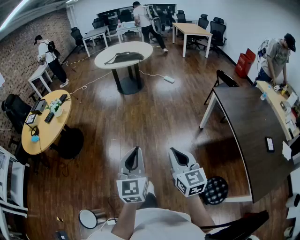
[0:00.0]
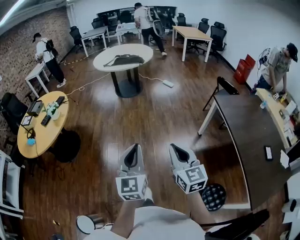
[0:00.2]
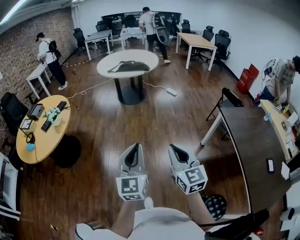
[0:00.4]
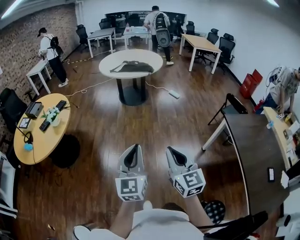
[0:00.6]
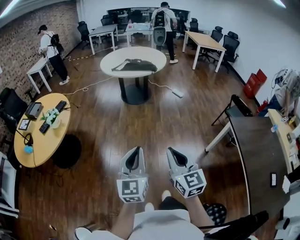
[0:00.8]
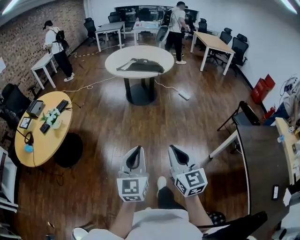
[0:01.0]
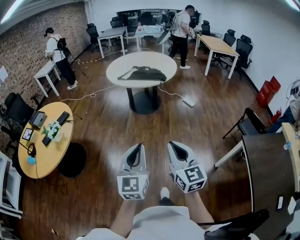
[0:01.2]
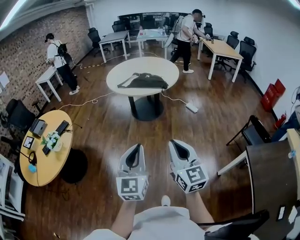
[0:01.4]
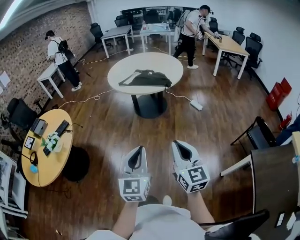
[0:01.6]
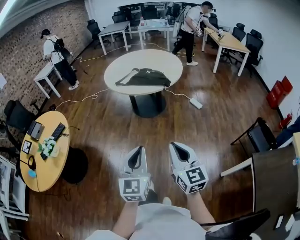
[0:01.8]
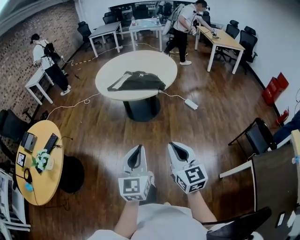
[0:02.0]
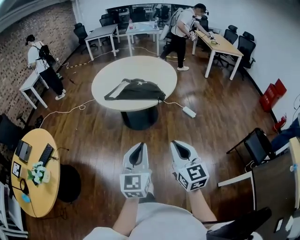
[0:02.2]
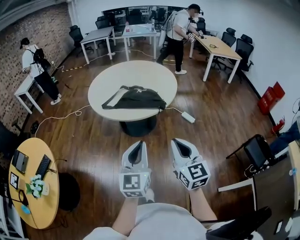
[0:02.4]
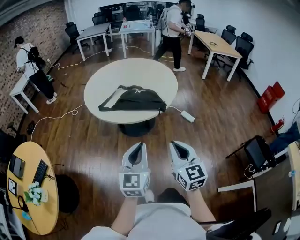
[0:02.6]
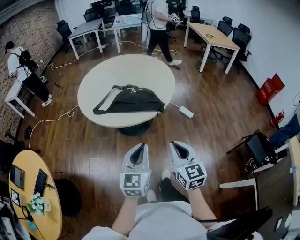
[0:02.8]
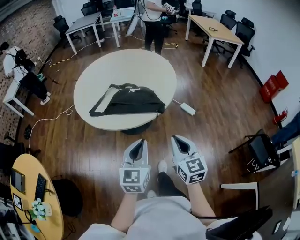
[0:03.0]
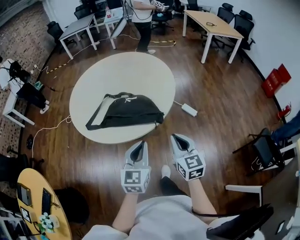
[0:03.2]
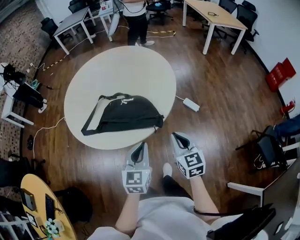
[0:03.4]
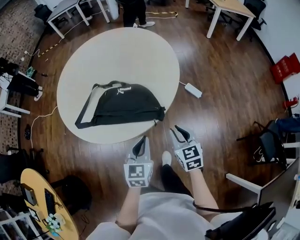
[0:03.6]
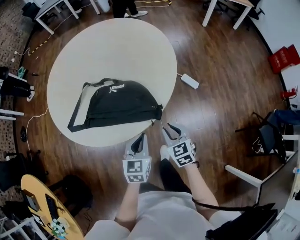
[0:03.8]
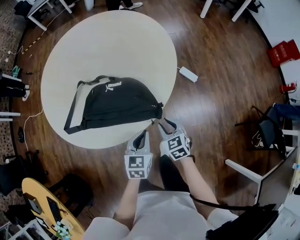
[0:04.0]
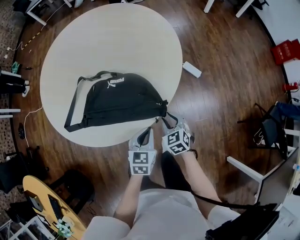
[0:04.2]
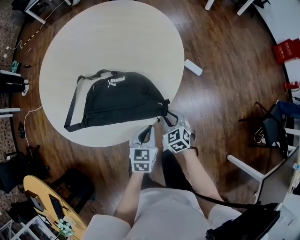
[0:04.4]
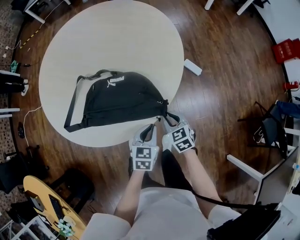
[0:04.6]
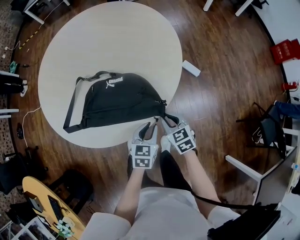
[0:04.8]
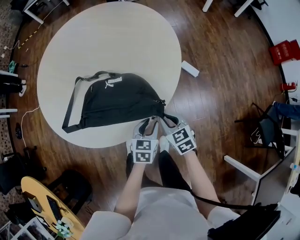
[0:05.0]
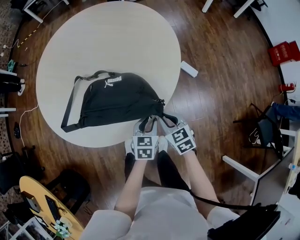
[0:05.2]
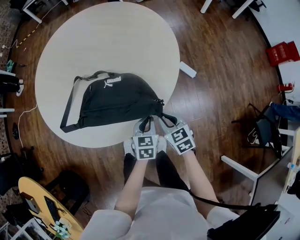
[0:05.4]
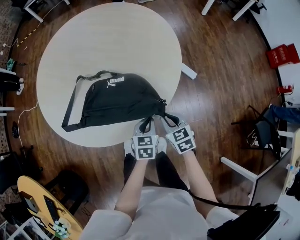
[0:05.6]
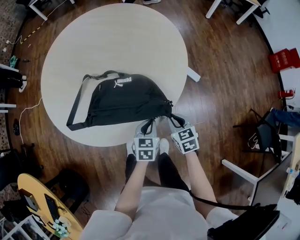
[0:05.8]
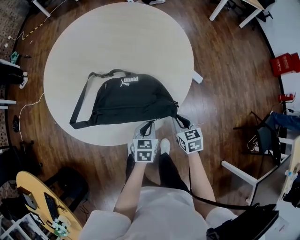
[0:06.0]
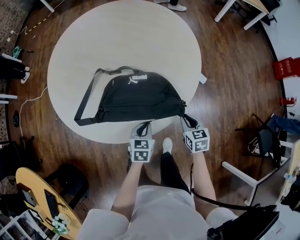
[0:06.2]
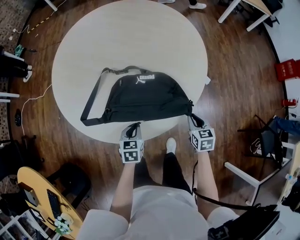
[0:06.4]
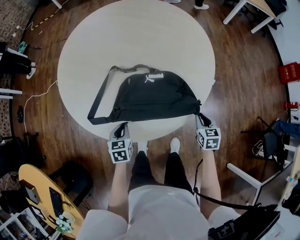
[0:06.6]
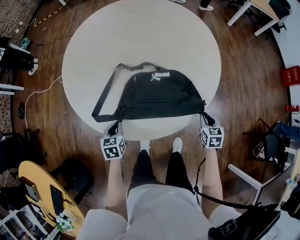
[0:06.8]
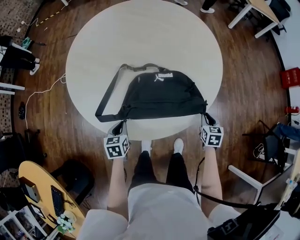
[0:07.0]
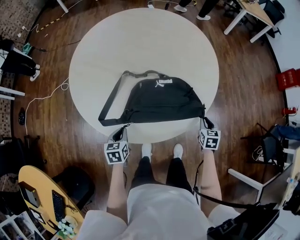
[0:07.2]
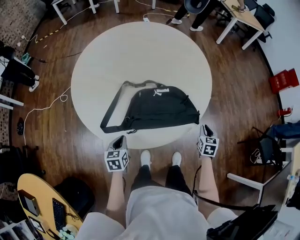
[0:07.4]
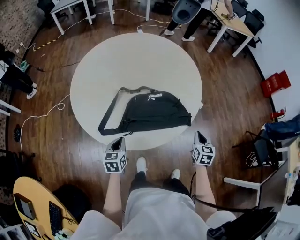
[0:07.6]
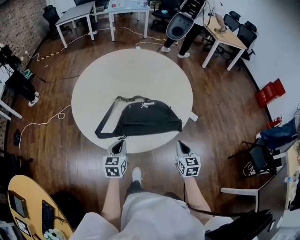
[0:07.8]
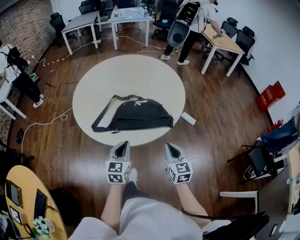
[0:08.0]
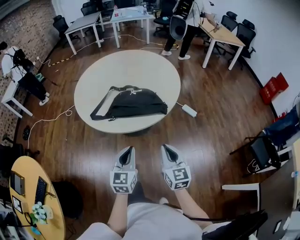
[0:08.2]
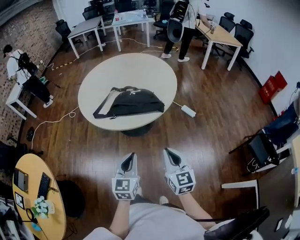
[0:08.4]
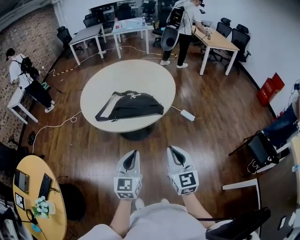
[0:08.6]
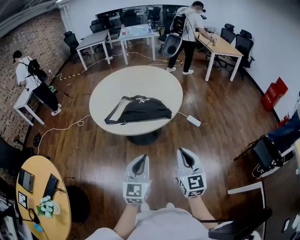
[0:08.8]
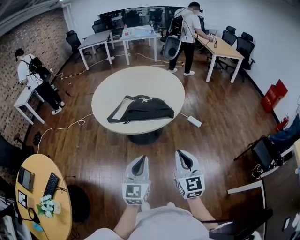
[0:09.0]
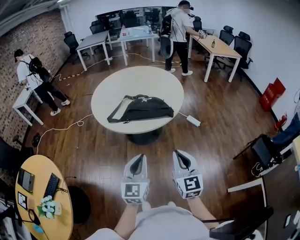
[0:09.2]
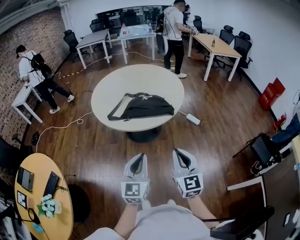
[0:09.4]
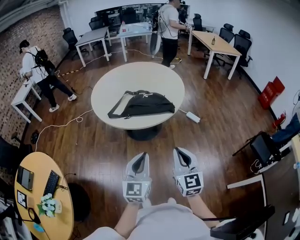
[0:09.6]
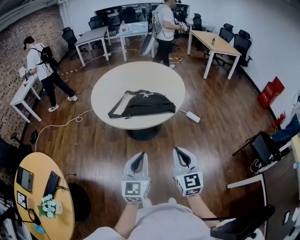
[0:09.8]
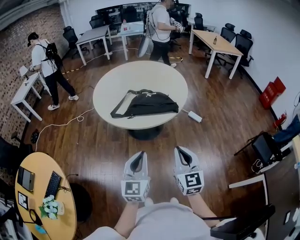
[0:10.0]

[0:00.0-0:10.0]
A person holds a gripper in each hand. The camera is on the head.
0:00.0 to 0:01.4: The pair of grippers is taken forward, approximately 50 cm.
0:01.4 to 0:02.8: Both grippers are carried forward, about 50 cm.
0:02.8 to 0:04.2: Both grippers move forward and downward, about 50 cm. The right gripper angles its fingers downward, by about 30 degrees, and opens, while the left gripper points its fingers about 30 degrees further downward.
0:04.2 to 0:05.8: The left gripper shifts by roughly 5 cm, and opens, then closes once more.
0:05.8 to 0:07.2: The left gripper shifts roughly 35 cm to the left. The right gripper changes its angle by approximately 20 degrees.
0:07.2 to 0:08.6: The left gripper travels backward, upward and to the right by some 50 cm, and angles its fingers upward, by roughly 40 degrees, while the right gripper shifts some 50 cm backward and upward, and tips its fingers upward by roughly 40 degrees.
0:08.6 to 0:10.0: The two grippers go some 10 cm to the left.

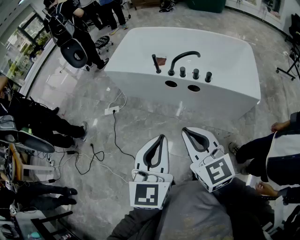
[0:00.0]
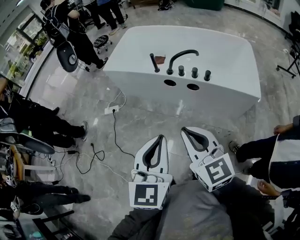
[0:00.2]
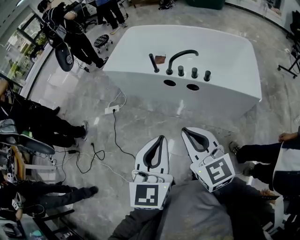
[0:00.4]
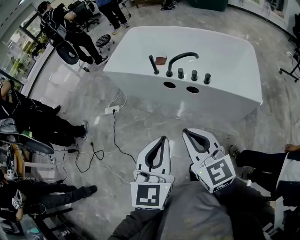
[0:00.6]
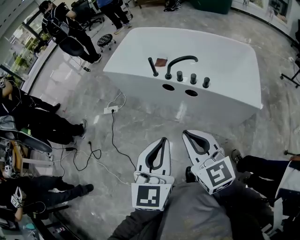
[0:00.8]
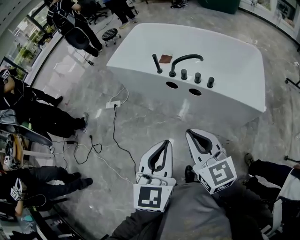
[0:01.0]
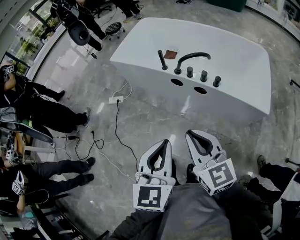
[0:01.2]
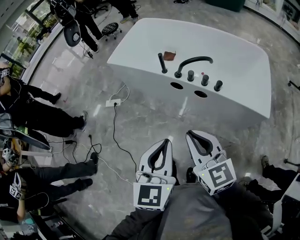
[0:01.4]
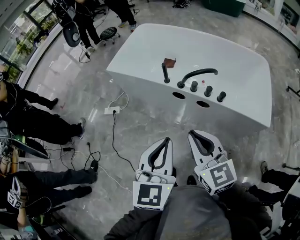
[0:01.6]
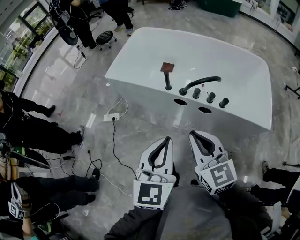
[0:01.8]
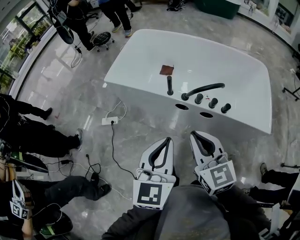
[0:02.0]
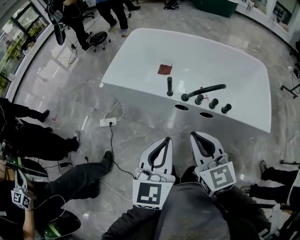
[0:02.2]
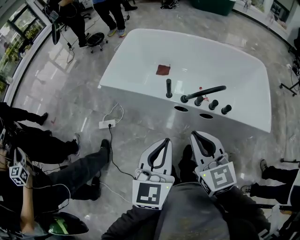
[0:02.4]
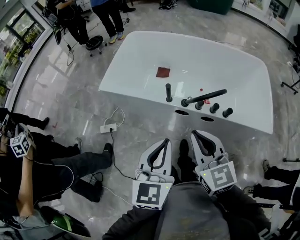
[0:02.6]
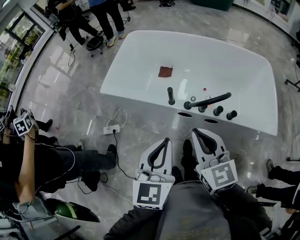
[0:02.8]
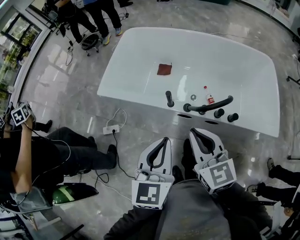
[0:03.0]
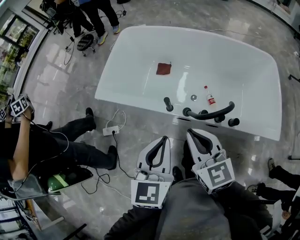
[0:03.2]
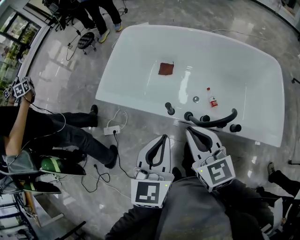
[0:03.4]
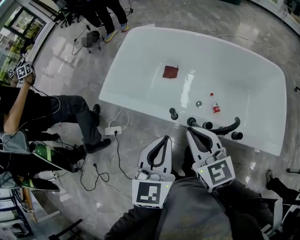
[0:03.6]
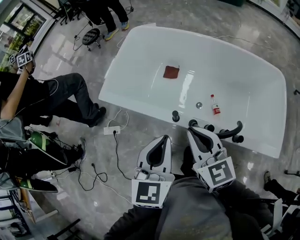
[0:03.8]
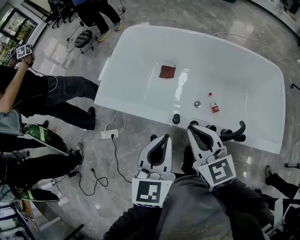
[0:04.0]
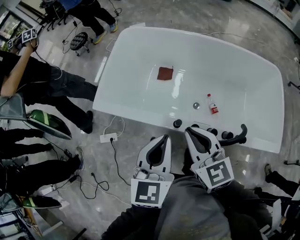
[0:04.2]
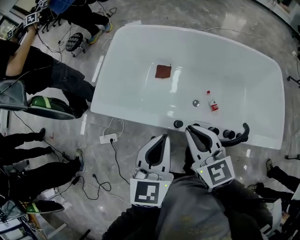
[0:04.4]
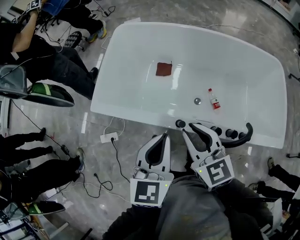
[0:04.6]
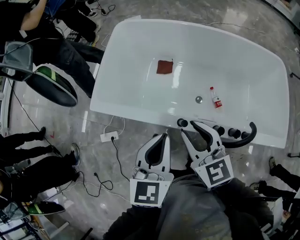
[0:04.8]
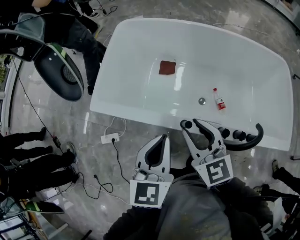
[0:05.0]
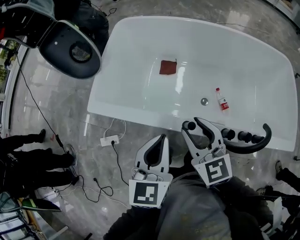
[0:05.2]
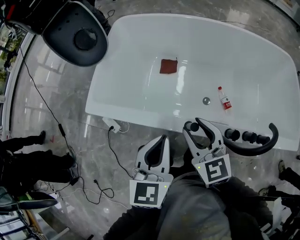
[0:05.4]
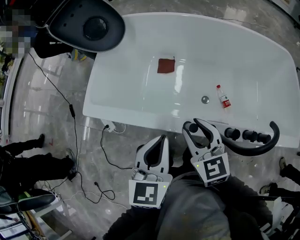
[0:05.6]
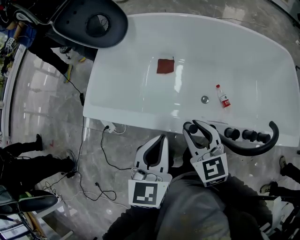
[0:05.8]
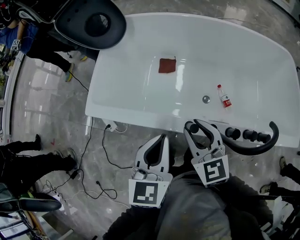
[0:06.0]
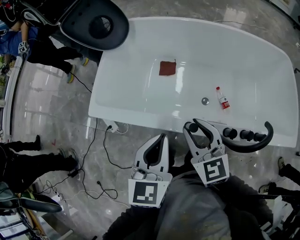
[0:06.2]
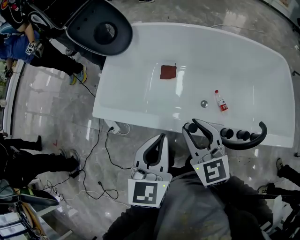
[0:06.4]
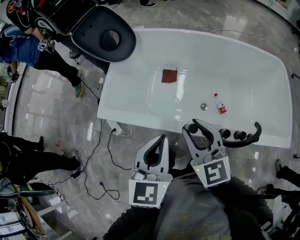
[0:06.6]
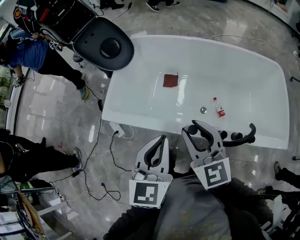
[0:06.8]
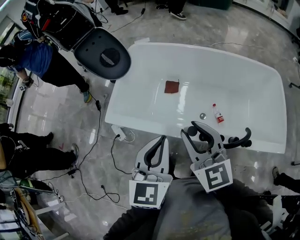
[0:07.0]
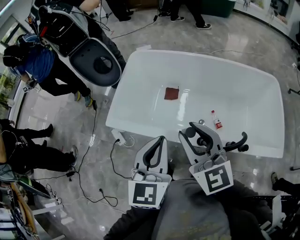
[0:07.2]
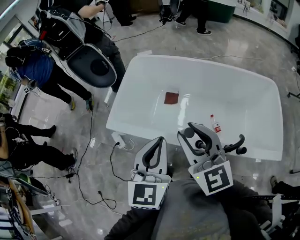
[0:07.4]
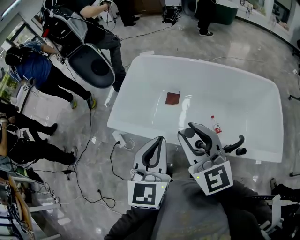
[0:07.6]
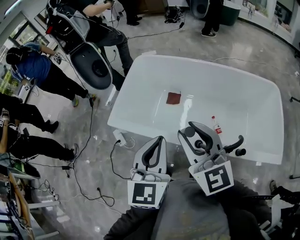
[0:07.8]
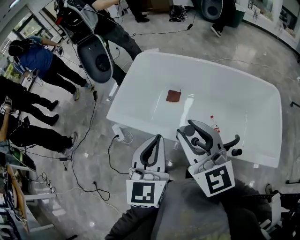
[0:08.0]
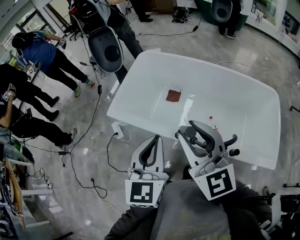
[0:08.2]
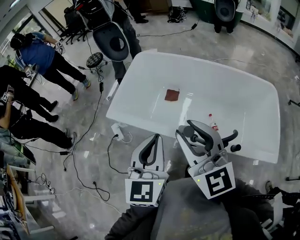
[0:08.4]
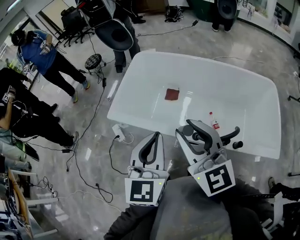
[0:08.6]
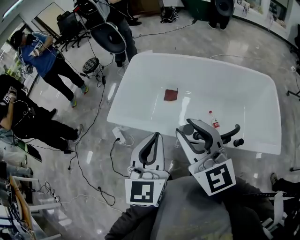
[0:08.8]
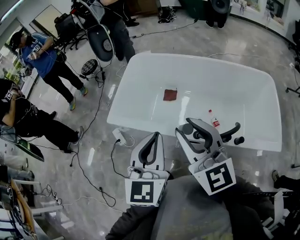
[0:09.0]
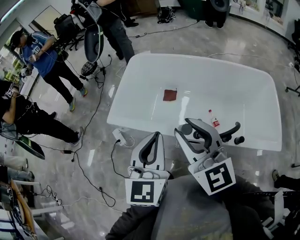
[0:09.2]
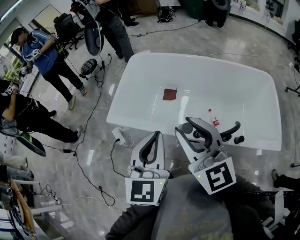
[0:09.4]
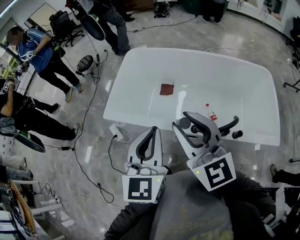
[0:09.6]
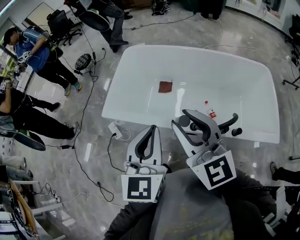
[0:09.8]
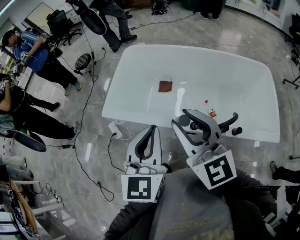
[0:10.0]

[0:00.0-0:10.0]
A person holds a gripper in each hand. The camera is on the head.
0:00.0 to 0:01.4: The grippers both shift forward by some 10 cm.
0:01.4 to 0:02.8: The two grippers go approximately 25 cm forward.
0:02.8 to 0:04.2: The grippers both shift forward by some 20 cm.
0:04.2 to 0:05.8: Both grippers move downward, approximately 20 cm. The right gripper opens.
0:05.8 to 0:07.2: Both grippers travel together upward, roughly 25 cm.
0:07.2 to 0:08.6: Both grippers travel together backward, some 10 cm.
0:08.6 to 0:10.0: Neither gripper changes place.

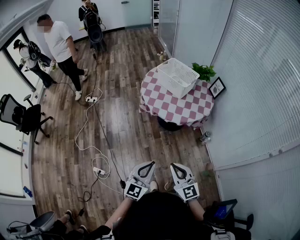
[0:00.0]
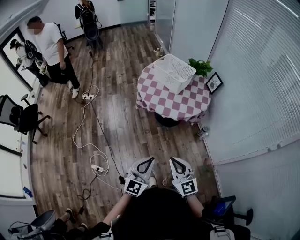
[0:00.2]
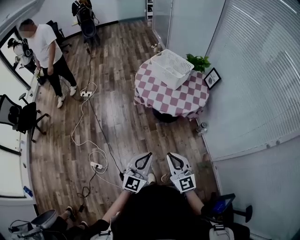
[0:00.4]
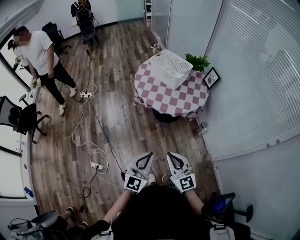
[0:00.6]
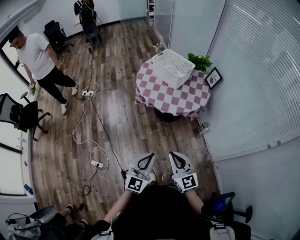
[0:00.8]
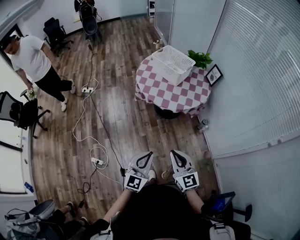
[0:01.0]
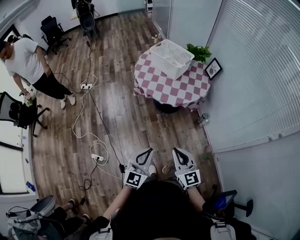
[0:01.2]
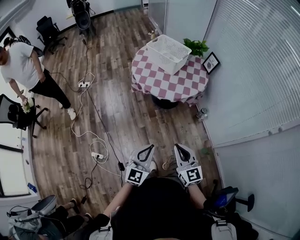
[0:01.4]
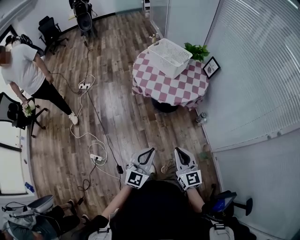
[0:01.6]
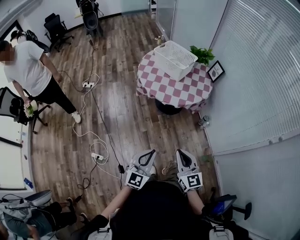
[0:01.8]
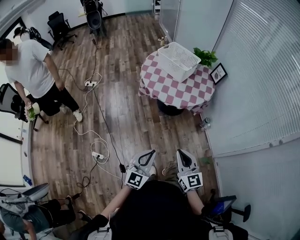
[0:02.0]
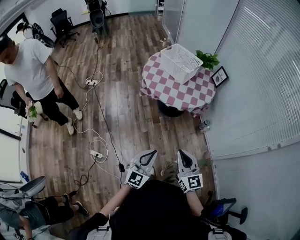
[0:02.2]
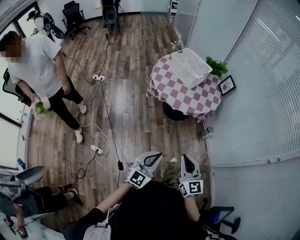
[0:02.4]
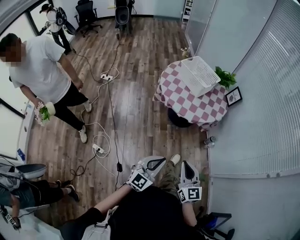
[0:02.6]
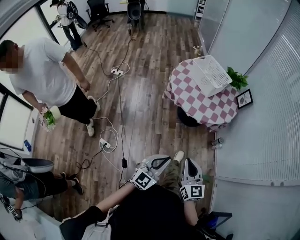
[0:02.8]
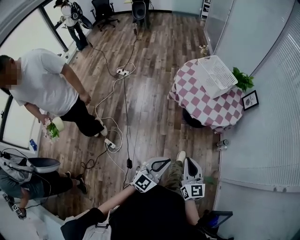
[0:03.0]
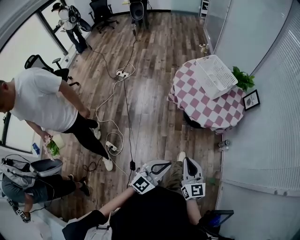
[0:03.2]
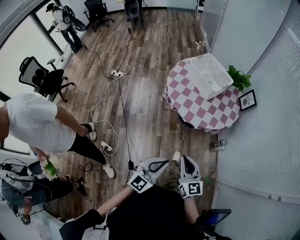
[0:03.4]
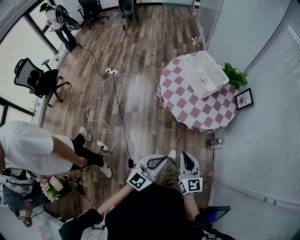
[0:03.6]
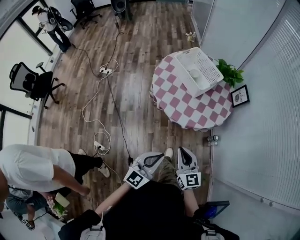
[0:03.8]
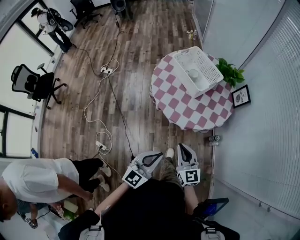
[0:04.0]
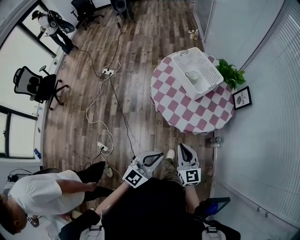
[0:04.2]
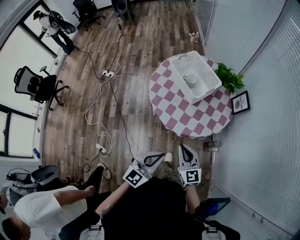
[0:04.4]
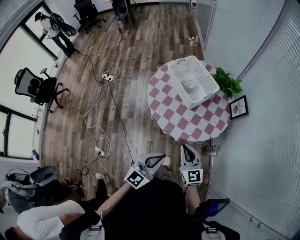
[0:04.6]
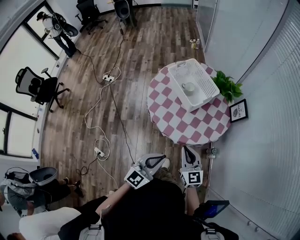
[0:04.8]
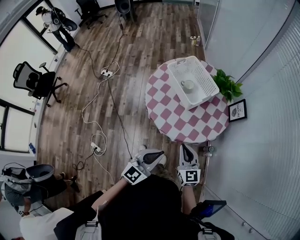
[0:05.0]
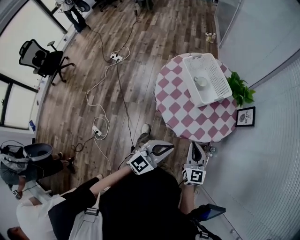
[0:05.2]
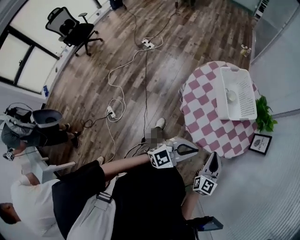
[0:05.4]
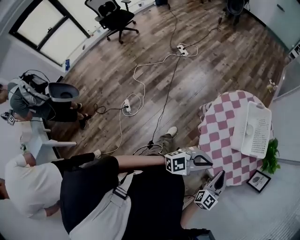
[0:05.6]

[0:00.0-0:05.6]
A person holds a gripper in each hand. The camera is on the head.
0:00.0 to 0:01.4: The right gripper moves to the right, roughly 5 cm.
0:01.4 to 0:02.8: The grippers move only a little.
0:02.8 to 0:04.2: The left gripper shifts approximately 25 cm forward and to the right; the right gripper shifts approximately 30 cm forward.
0:04.2 to 0:05.6: Both grippers move forward, roughly 15 cm.
